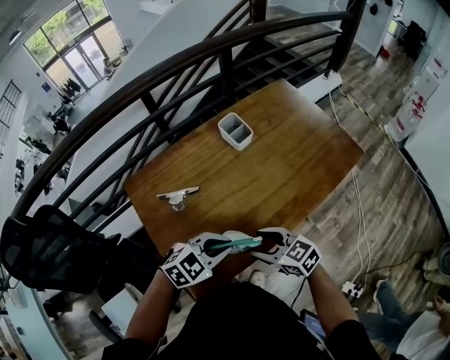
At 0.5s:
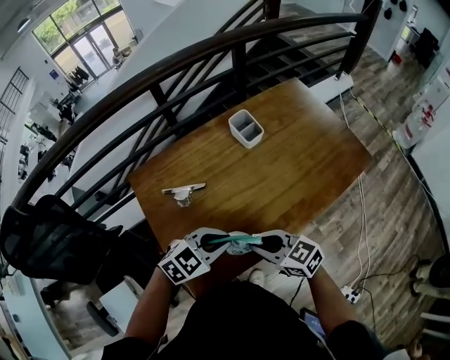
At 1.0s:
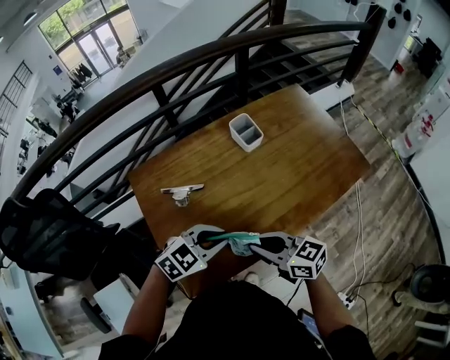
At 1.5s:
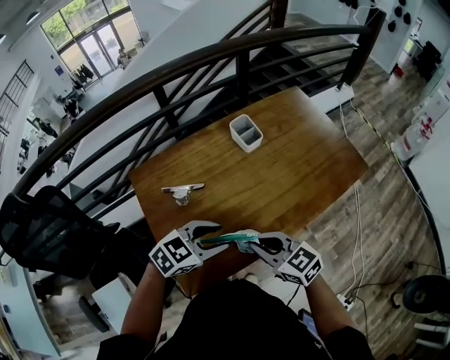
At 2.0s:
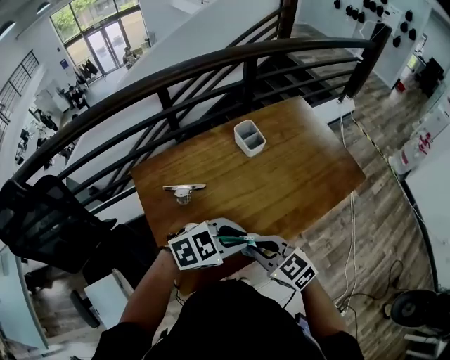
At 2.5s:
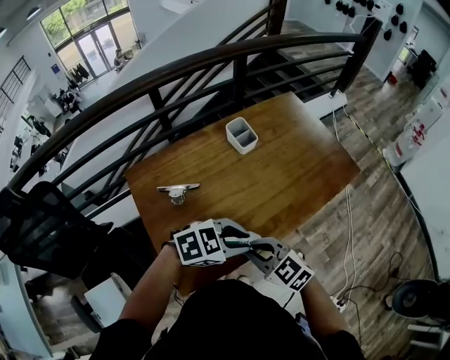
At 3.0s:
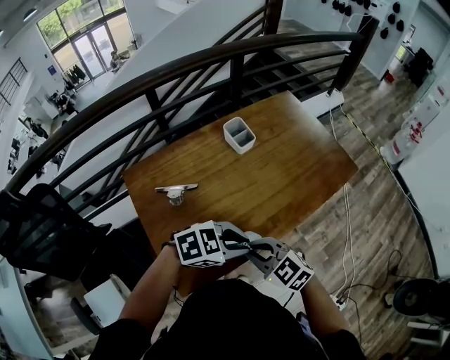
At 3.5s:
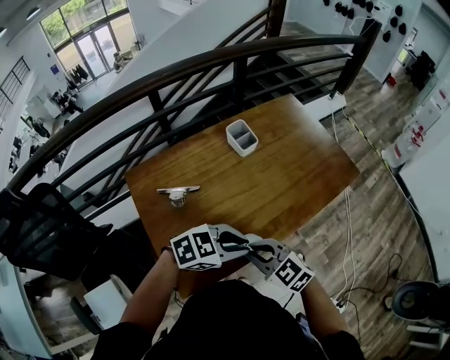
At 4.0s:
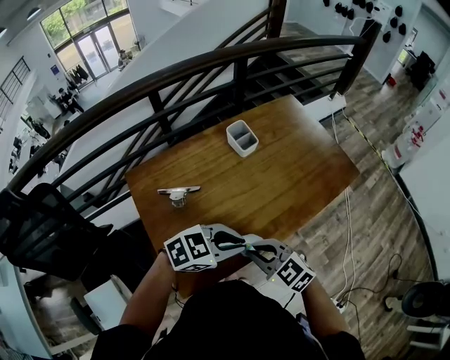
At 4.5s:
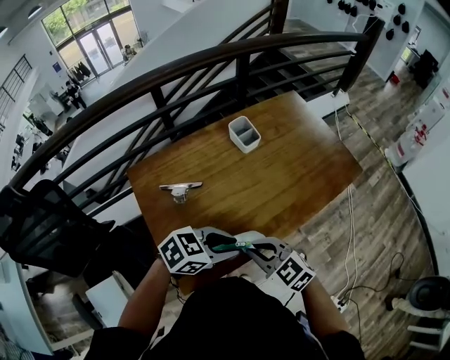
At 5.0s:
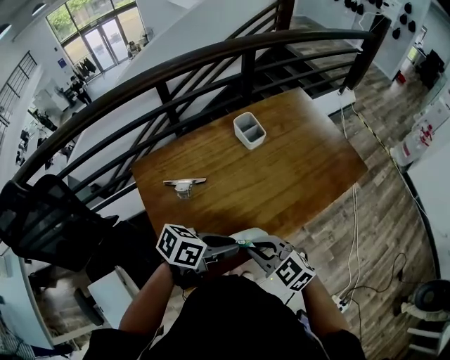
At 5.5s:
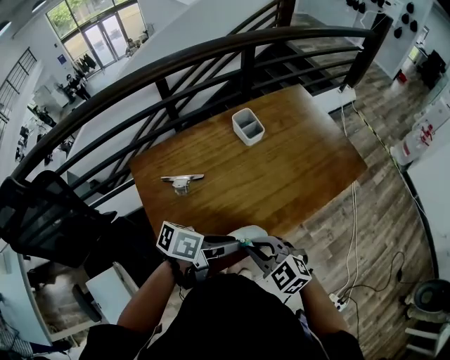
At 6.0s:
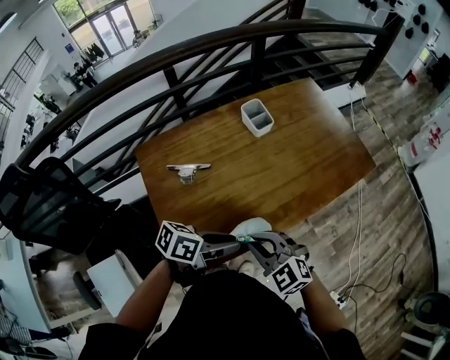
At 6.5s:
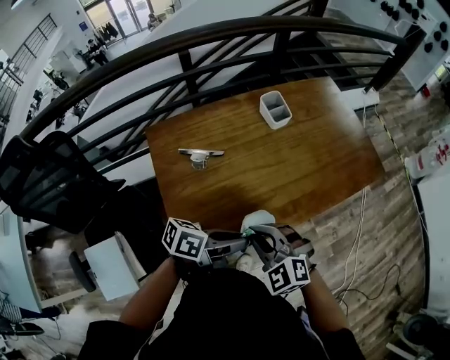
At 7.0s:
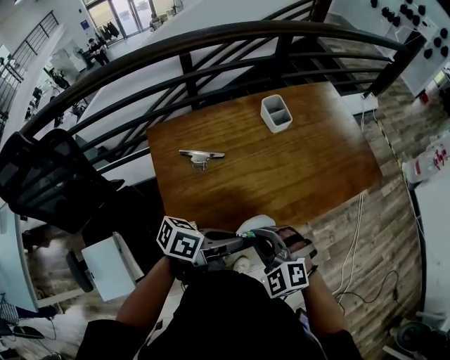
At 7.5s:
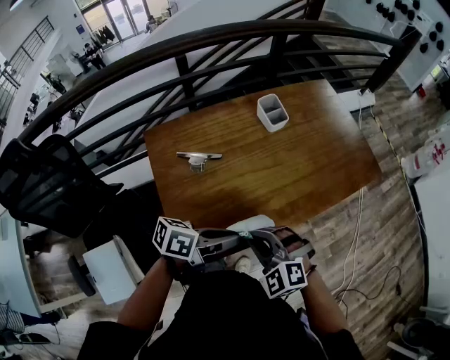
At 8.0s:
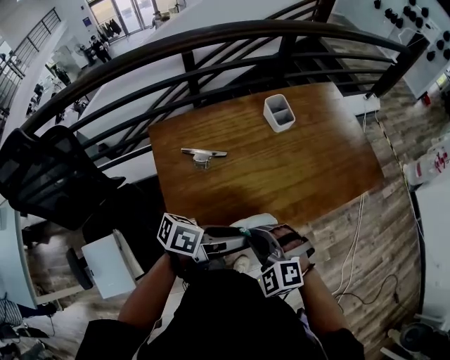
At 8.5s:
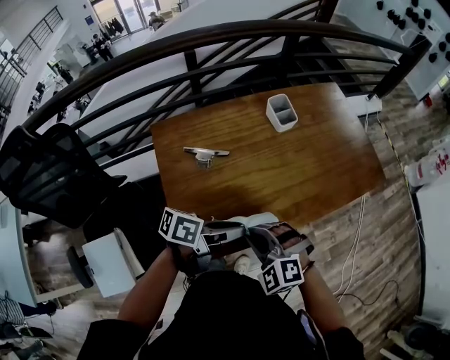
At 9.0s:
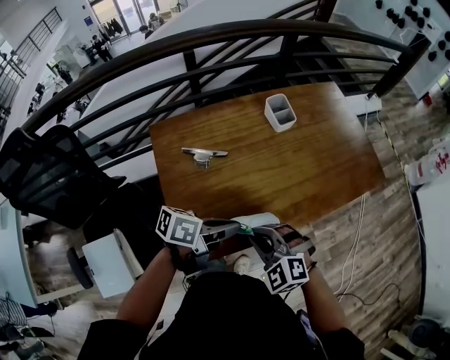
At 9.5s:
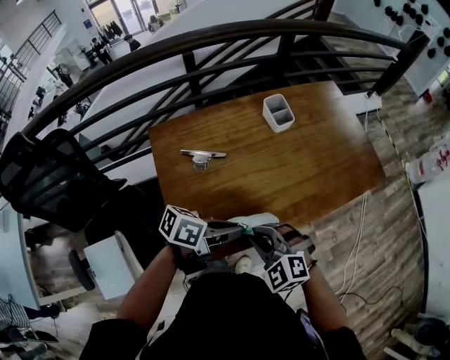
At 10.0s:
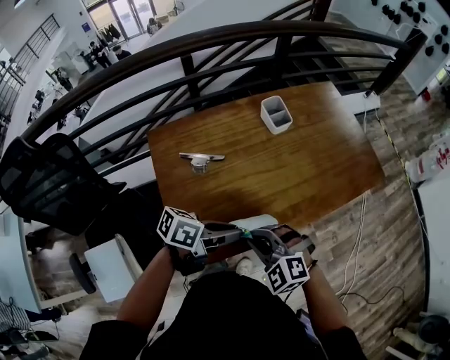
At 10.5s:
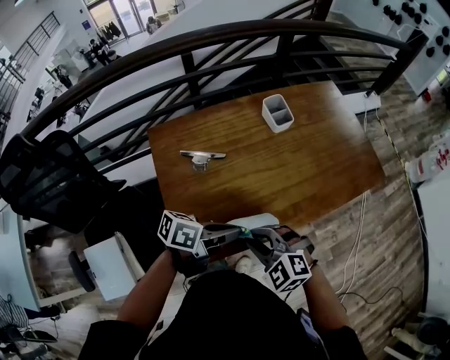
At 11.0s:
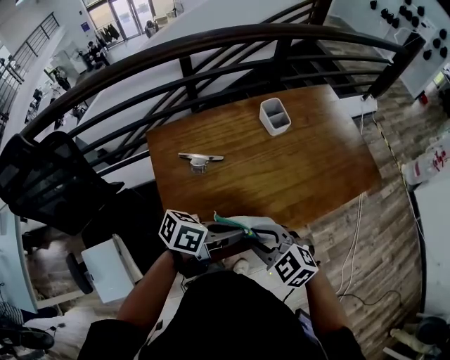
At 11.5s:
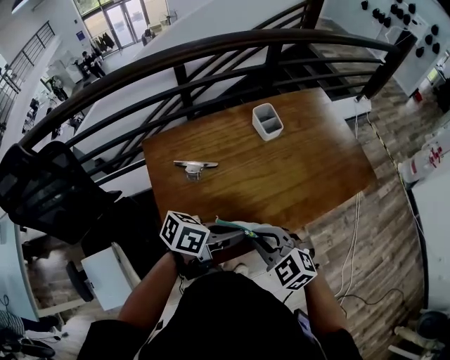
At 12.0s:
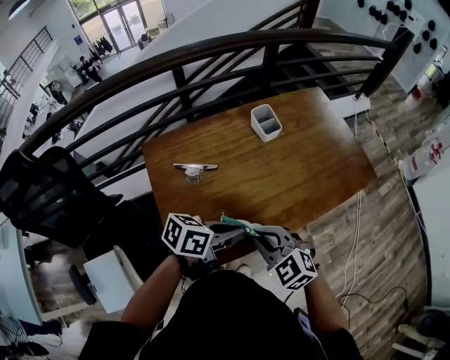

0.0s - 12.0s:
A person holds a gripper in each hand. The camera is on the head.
0.0s - 2.0s: The grippers both shift upward by about 5 cm. The left gripper opens, then closes once more. The right gripper closes its fingers.
2.0s - 4.0s: There are only small adjustments of the grippers.
4.0s - 6.0s: The left gripper shifts by roughly 5 cm, and rotates around the line of its fingers by approximately 50 degrees, counterclockwise from behind.
6.0s - 8.0s: The right gripper rotates some 30 degrees.
8.0s - 10.0s: The left gripper closes up.
10.0s - 12.0s: The right gripper swivels about 20 degrees, and opens, then closes again.

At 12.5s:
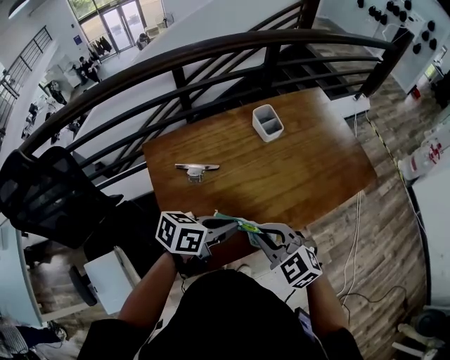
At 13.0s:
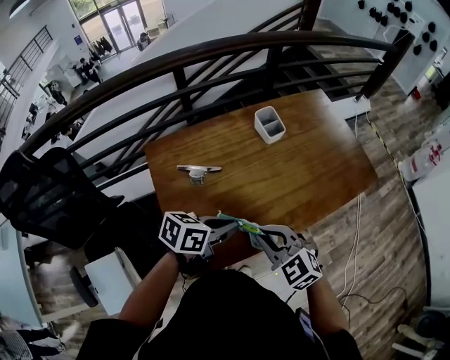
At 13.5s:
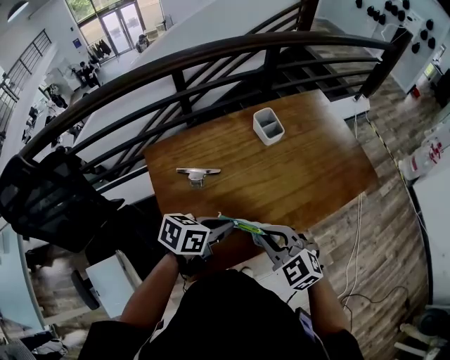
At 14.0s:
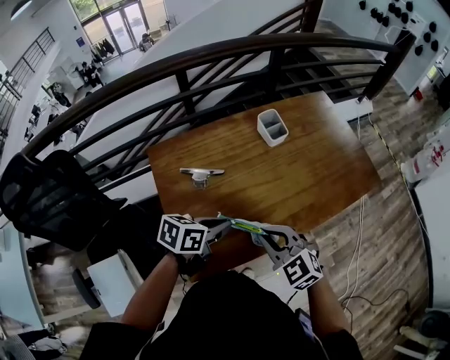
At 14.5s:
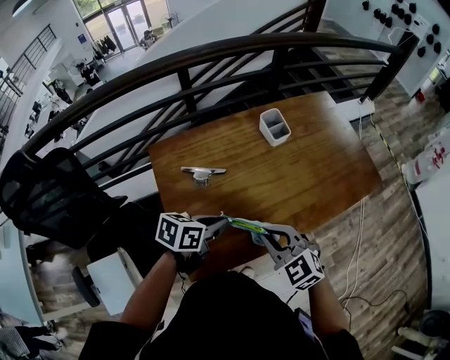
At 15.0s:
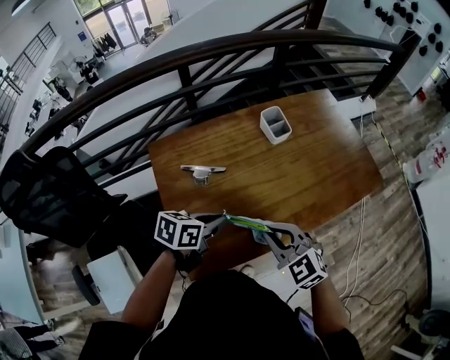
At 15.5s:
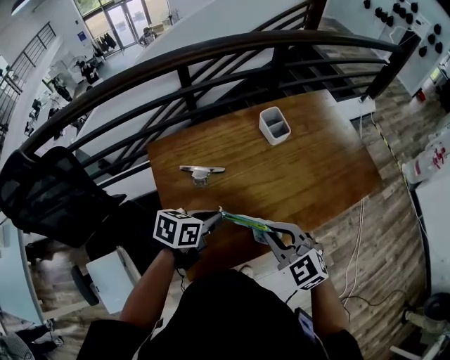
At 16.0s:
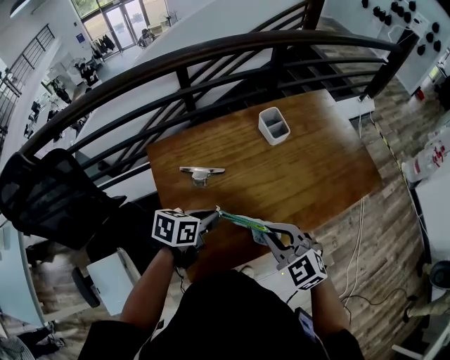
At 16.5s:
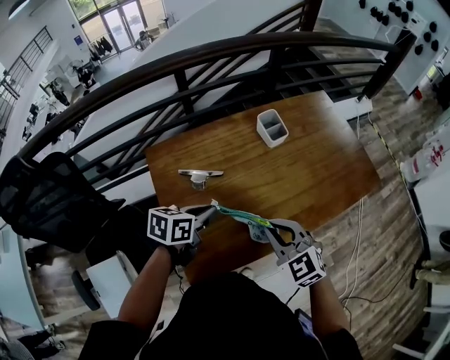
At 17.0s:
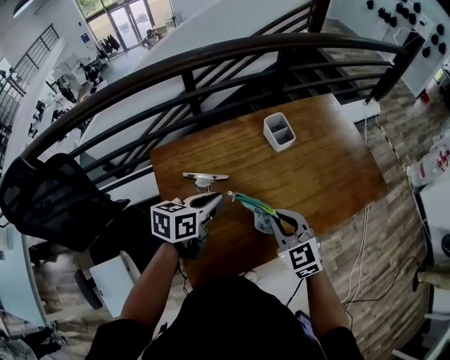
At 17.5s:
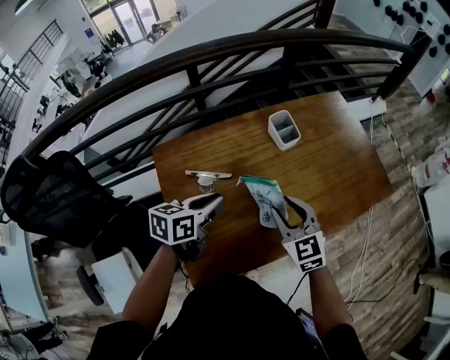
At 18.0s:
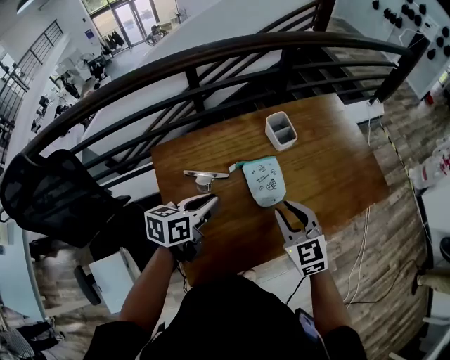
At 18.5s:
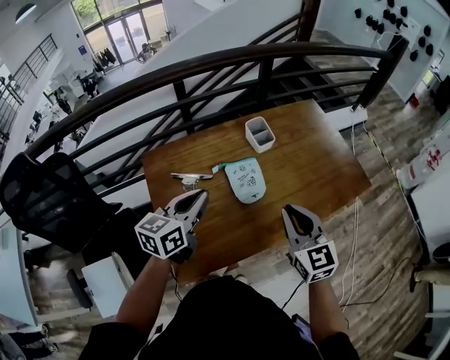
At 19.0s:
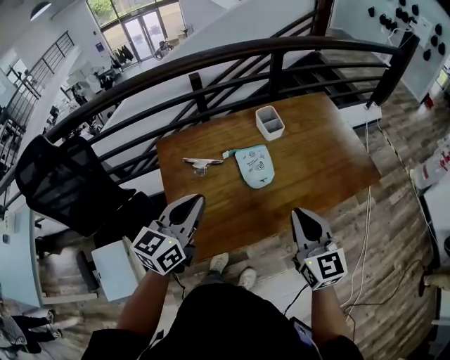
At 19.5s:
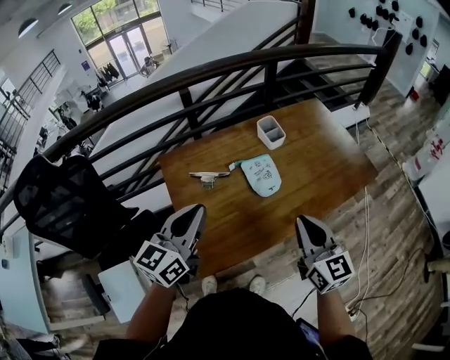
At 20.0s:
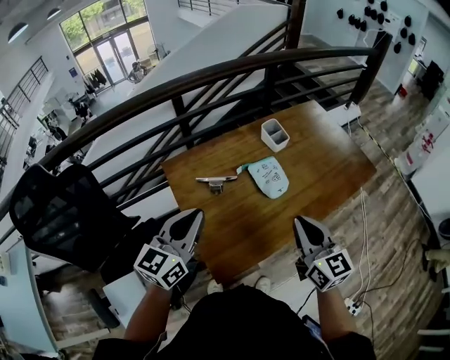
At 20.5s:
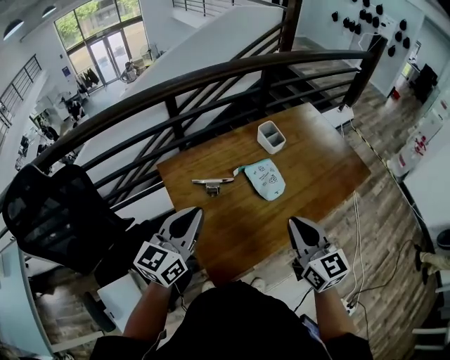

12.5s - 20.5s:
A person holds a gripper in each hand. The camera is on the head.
12.5s - 14.5s: The left gripper is displaced to the left by approximately 5 cm.
14.5s - 16.5s: The left gripper ends up about 5 cm from where it was.
16.5s - 18.5s: The left gripper heads upward, covering about 10 cm, and turns by some 30 degrees. The right gripper travels to the right and upward by roughly 10 cm, changes its angle by roughly 30 degrees, and opens and closes again.
18.5s - 20.5s: Both grippers travel together to the left and backward, approximately 15 cm.

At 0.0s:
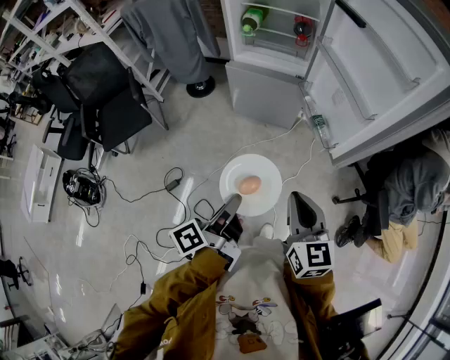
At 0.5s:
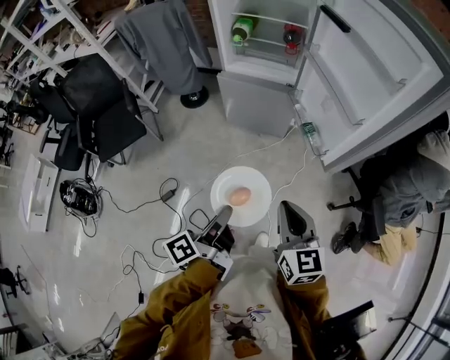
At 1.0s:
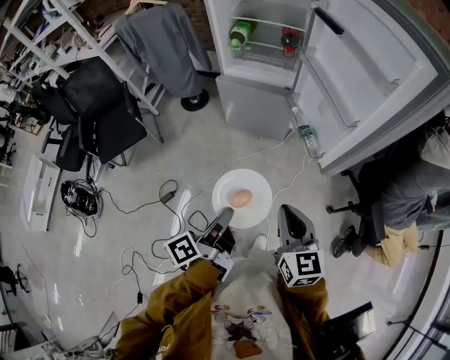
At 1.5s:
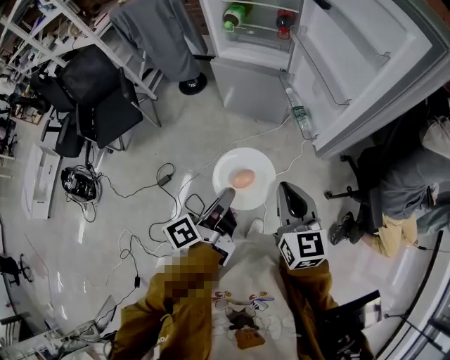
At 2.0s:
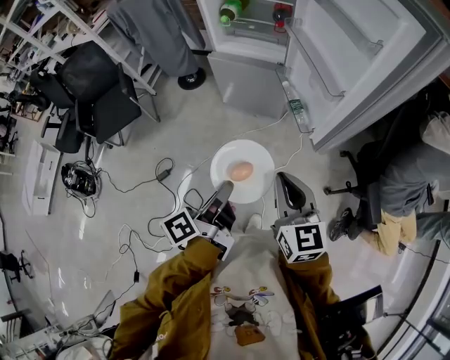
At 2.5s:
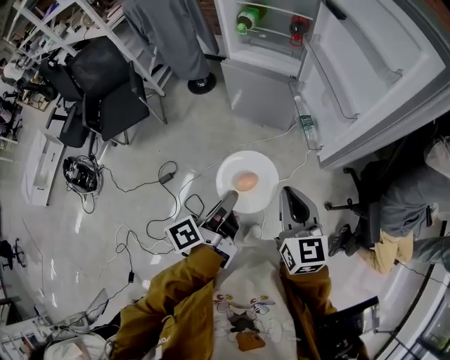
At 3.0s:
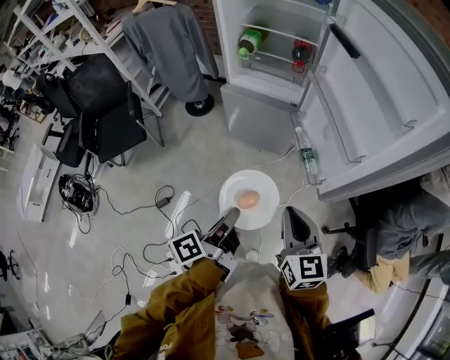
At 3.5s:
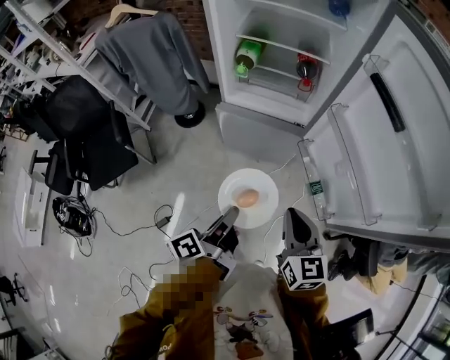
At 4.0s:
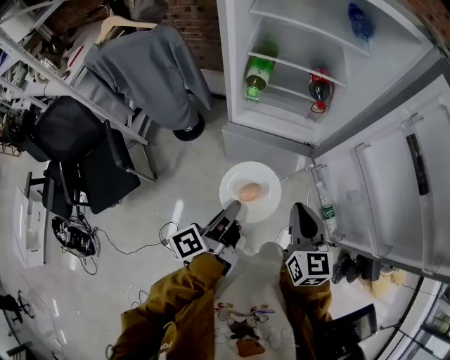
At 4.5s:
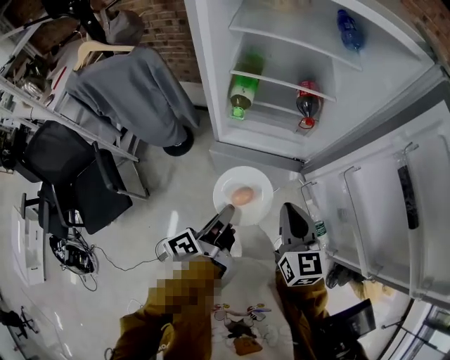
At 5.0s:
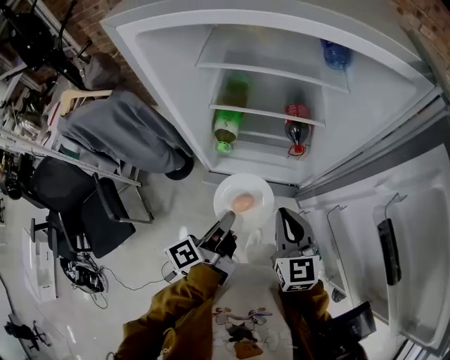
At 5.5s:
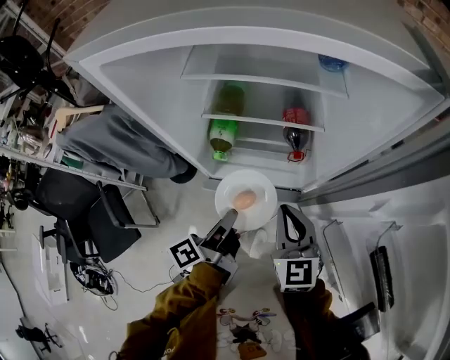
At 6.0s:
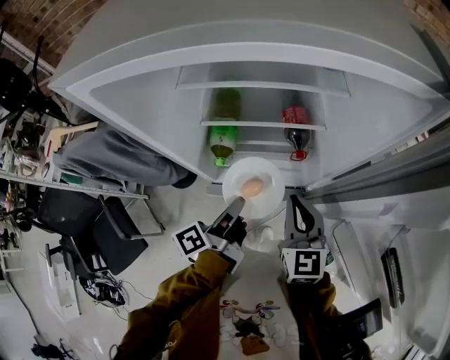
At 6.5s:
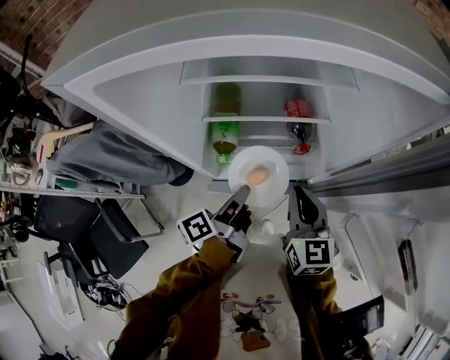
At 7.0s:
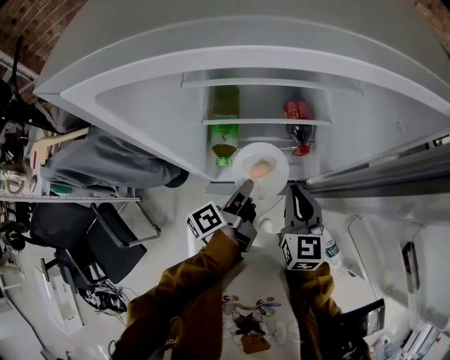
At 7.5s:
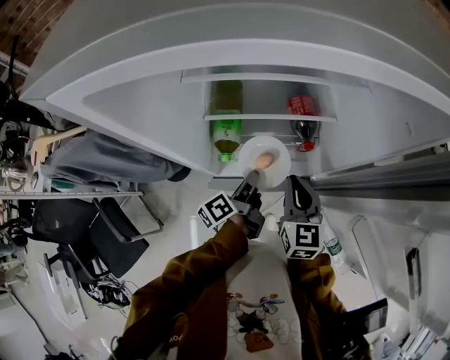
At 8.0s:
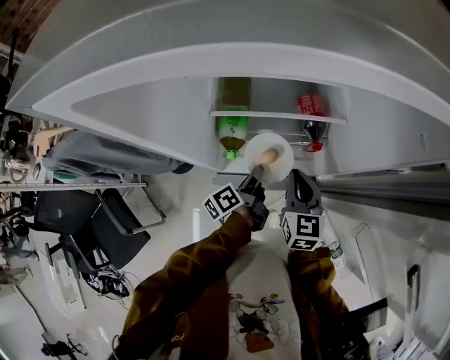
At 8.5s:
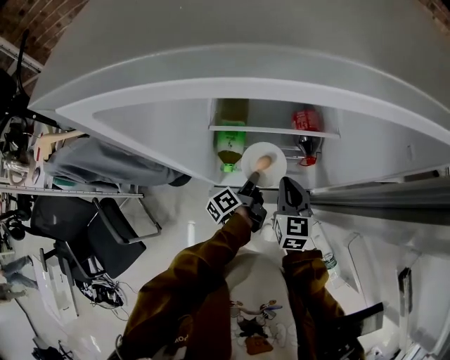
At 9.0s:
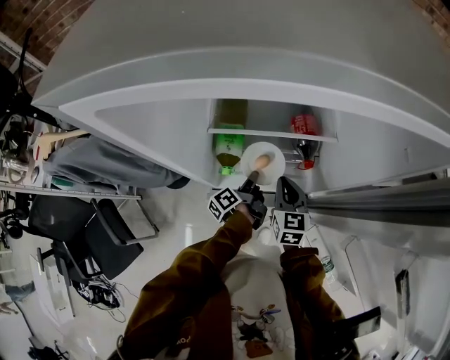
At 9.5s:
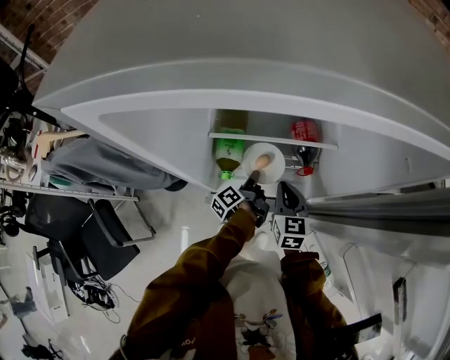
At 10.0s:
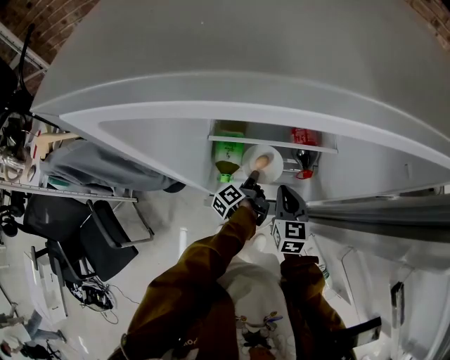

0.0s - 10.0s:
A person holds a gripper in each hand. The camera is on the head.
0.0s - 2.0s: The right gripper shifts by approximately 10 cm.
2.0s - 4.0s: The right gripper changes place by about 40 cm.
4.0s - 6.0s: The right gripper moves approximately 30 cm.
6.0s - 8.0s: The right gripper shifts some 10 cm downward.
8.0s - 10.0s: The right gripper shifts by roughly 5 cm.
